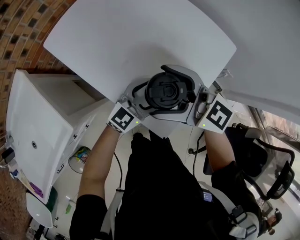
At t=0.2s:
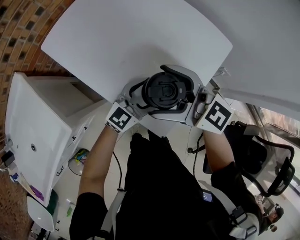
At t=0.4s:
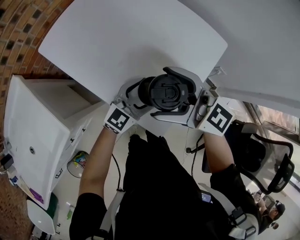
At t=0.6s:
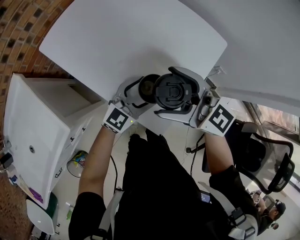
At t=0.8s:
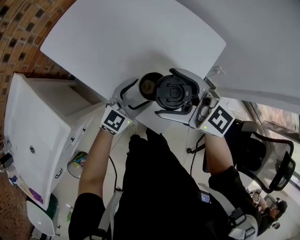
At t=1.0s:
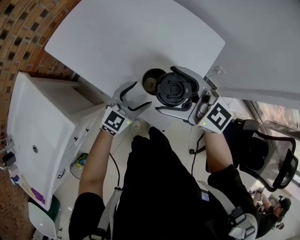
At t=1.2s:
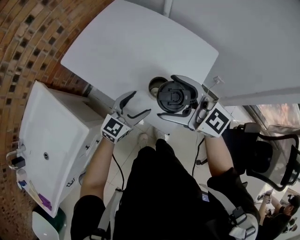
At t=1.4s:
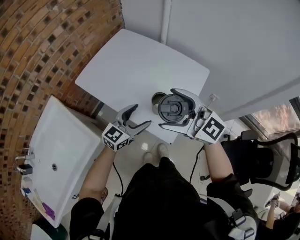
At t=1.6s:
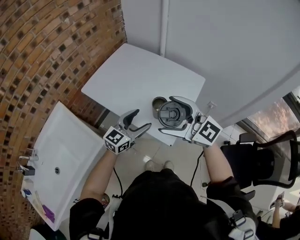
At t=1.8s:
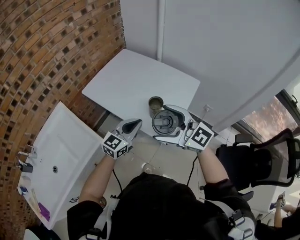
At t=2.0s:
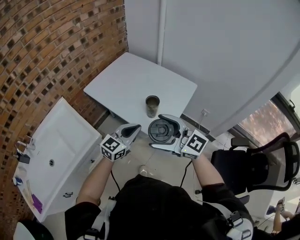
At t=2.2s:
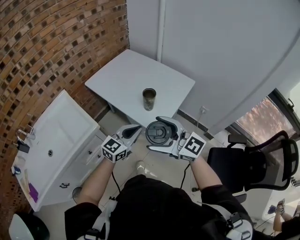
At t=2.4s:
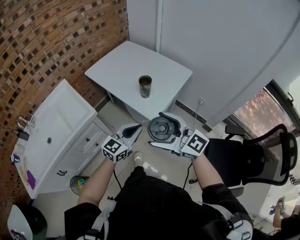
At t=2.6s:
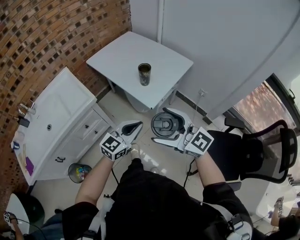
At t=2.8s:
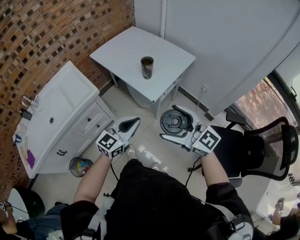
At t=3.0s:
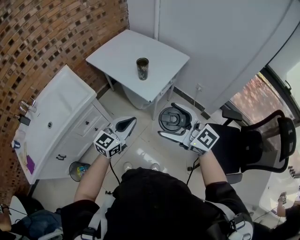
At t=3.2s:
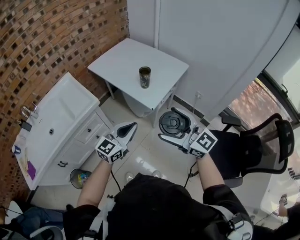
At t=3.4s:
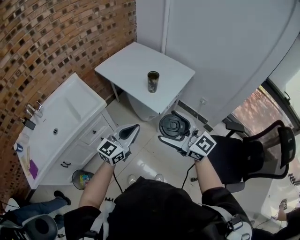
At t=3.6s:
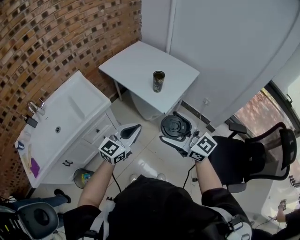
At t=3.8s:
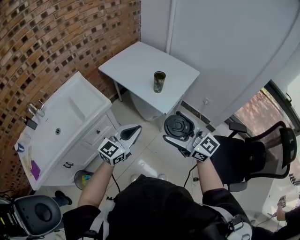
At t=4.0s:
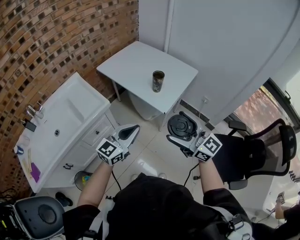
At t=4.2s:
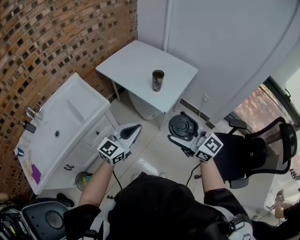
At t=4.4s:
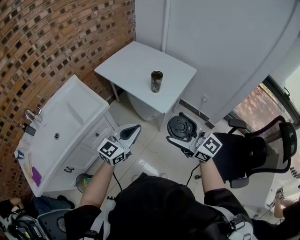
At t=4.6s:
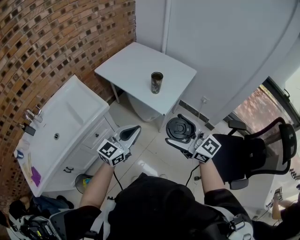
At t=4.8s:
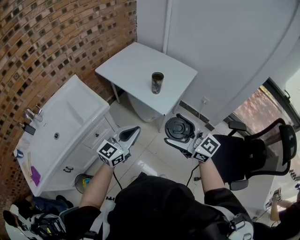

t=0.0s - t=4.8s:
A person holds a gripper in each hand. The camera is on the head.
t=0.0s - t=1.6s: The left gripper is displaced upward, to the left and backward by some 20 cm, while the right gripper heads upward and backward, covering some 20 cm, and rotates approximately 20 degrees.
t=1.6s - t=3.2s: The two grippers go roughly 30 cm backward. The left gripper closes its fingers.
t=3.2s - t=4.8s: Both grippers move to the left, approximately 5 cm.

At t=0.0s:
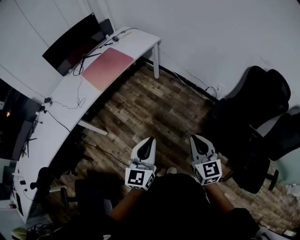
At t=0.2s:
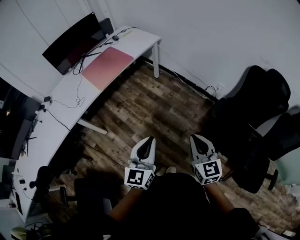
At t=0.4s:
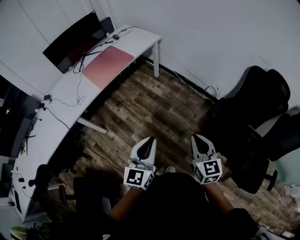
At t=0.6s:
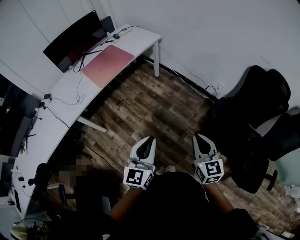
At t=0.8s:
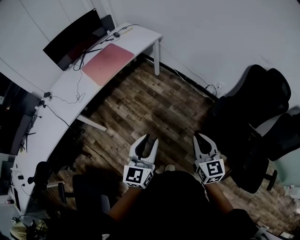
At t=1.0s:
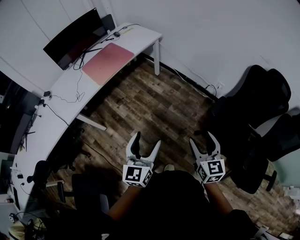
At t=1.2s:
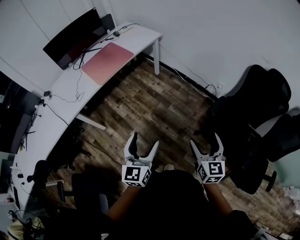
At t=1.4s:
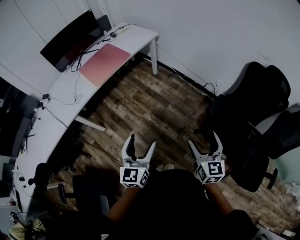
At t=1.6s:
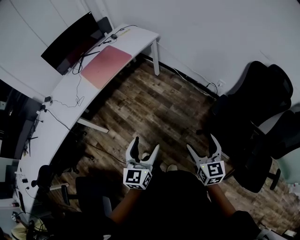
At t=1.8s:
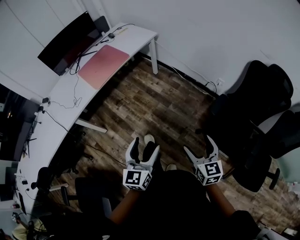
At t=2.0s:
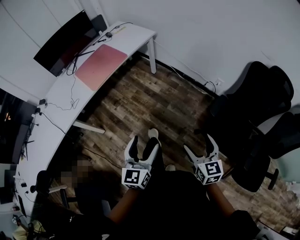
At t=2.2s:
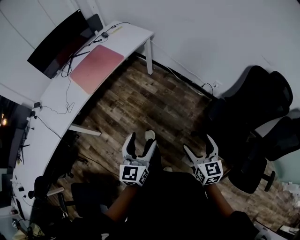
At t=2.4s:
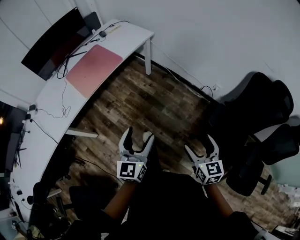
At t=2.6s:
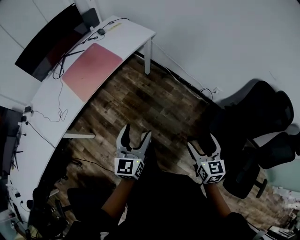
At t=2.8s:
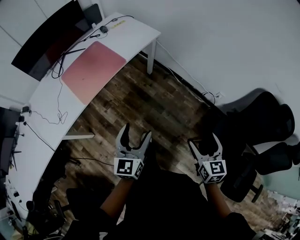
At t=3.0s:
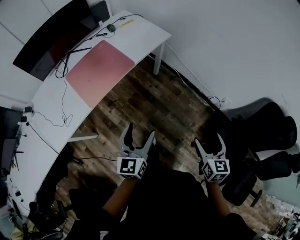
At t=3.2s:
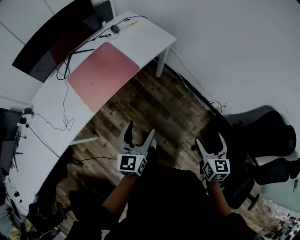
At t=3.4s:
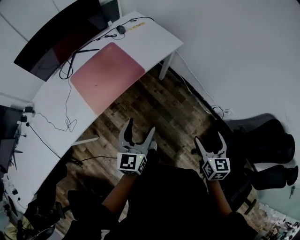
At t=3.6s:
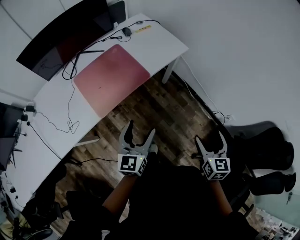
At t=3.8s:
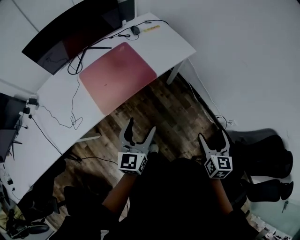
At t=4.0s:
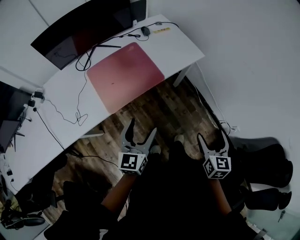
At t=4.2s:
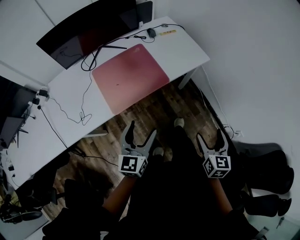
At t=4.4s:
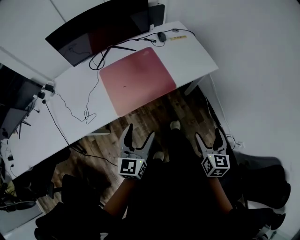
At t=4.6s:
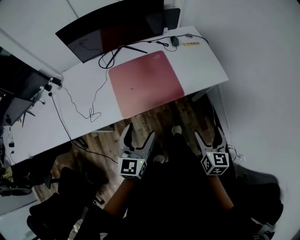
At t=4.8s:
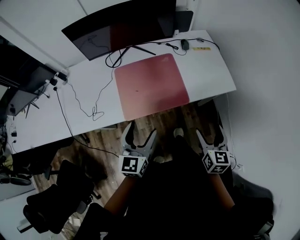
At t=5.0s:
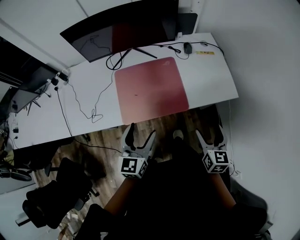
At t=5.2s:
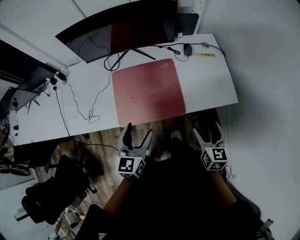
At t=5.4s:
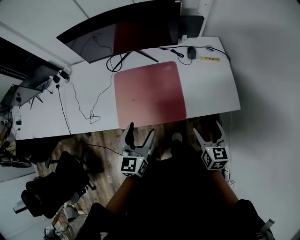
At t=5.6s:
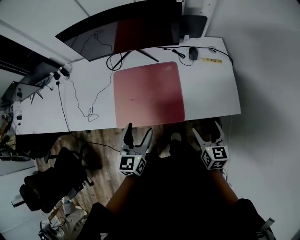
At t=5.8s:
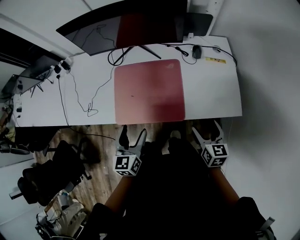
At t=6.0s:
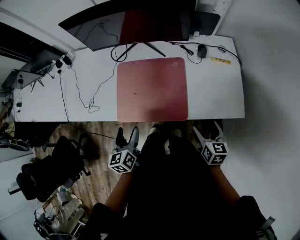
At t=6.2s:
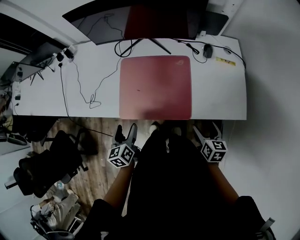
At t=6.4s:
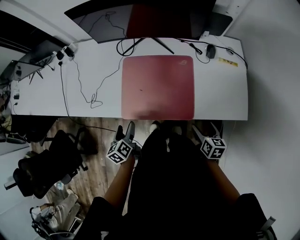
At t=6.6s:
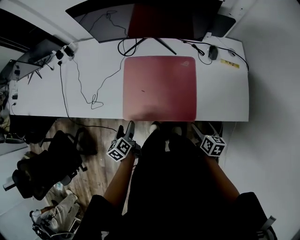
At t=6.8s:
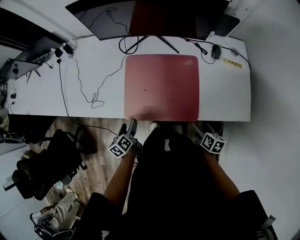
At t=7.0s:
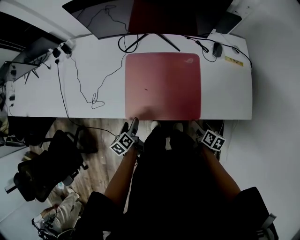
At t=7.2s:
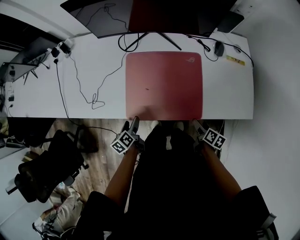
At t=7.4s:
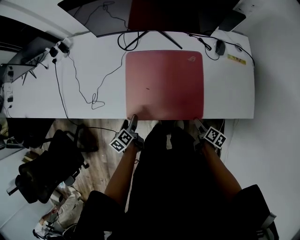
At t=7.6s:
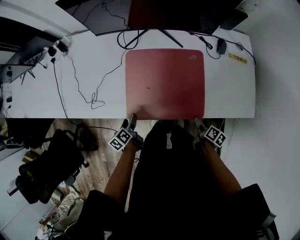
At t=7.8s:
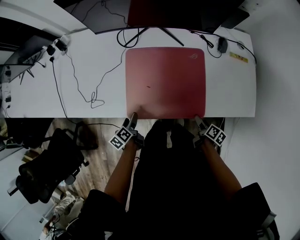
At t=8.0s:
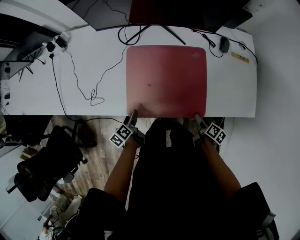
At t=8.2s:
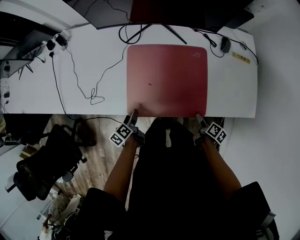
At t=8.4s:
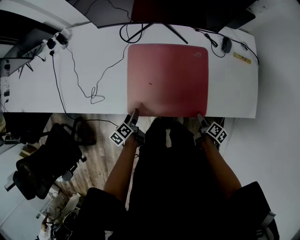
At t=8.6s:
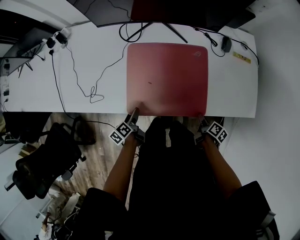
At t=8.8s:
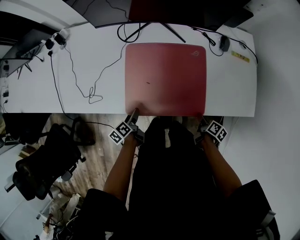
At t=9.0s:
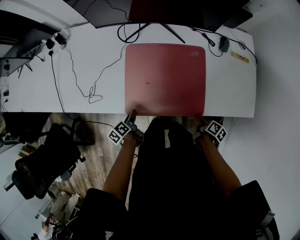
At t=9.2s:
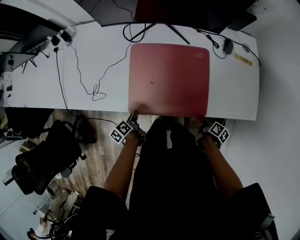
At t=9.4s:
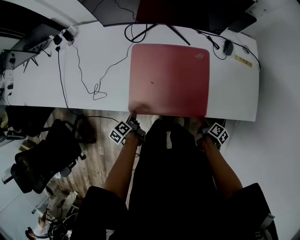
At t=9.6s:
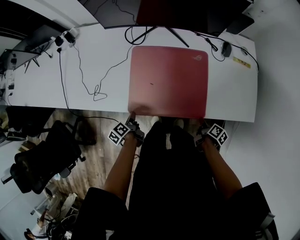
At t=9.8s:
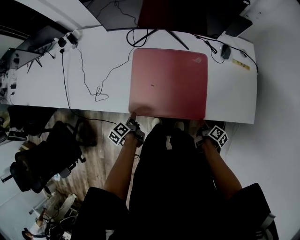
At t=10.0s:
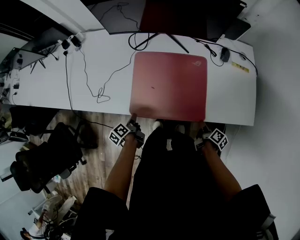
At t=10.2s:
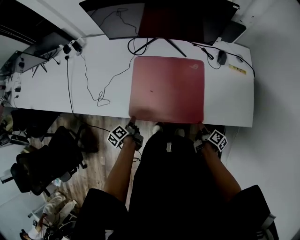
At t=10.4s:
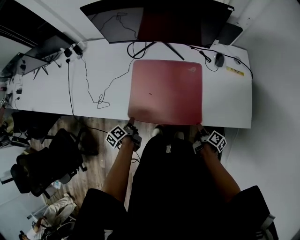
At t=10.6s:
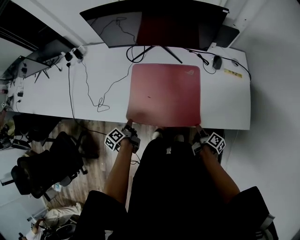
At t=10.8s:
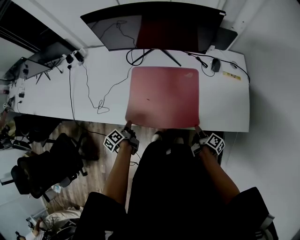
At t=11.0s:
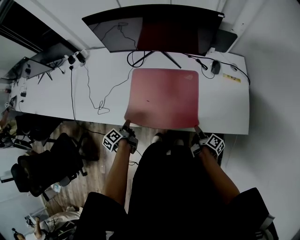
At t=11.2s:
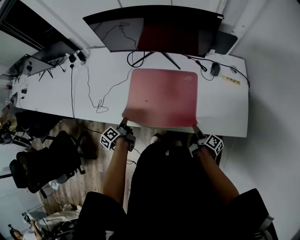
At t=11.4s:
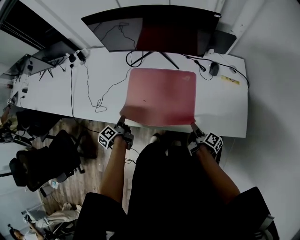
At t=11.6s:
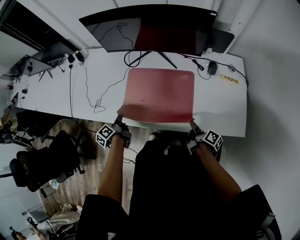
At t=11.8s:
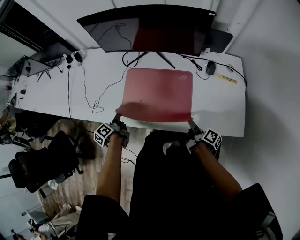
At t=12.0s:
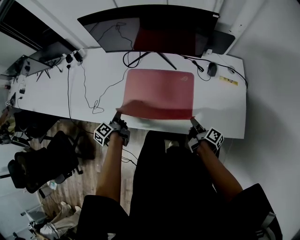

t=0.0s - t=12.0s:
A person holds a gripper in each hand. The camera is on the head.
t=0.0s - t=1.6s: The left gripper opens. Meanwhile the right gripper shifts about 5 cm to the right, and opens its fingers.
t=1.6s - t=3.0s: Both grippers travel together forward, about 35 cm.
t=3.0s - t=4.4s: The right gripper is displaced forward and to the left by about 30 cm, while the left gripper shifts approximately 20 cm to the left and forward, and changes its angle by some 20 degrees.
t=4.4s - t=6.0s: The right gripper changes place by approximately 35 cm, and turns by about 30 degrees. The left gripper changes place by roughly 20 cm, and changes its angle by some 50 degrees.
t=6.0s - t=7.6s: The right gripper travels downward by about 20 cm, and rolls clockwise, seen from behind, by roughly 40 degrees, while the left gripper shifts some 25 cm downward and to the left, and swivels some 30 degrees.
t=7.6s - t=9.0s: The left gripper closes, while the right gripper closes its fingers.
t=9.0s - t=10.4s: Both grippers travel together upward, some 5 cm. The left gripper closes up.
t=10.4s - t=12.0s: The left gripper is displaced upward and forward by some 10 cm. The right gripper moves forward and upward, roughly 10 cm.

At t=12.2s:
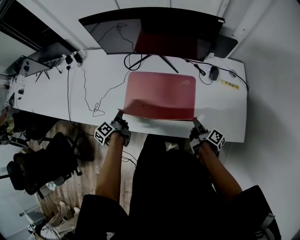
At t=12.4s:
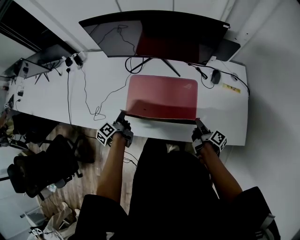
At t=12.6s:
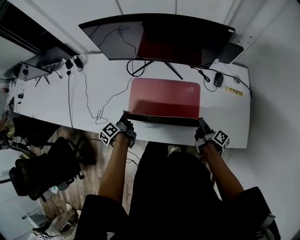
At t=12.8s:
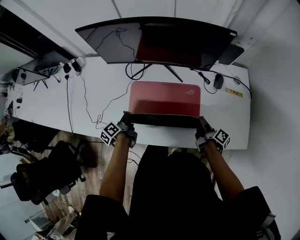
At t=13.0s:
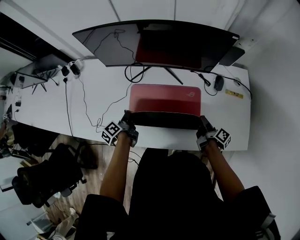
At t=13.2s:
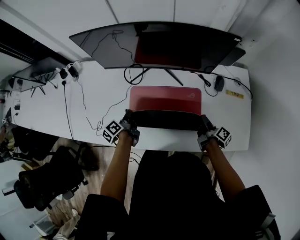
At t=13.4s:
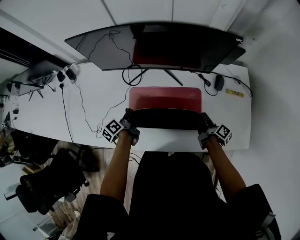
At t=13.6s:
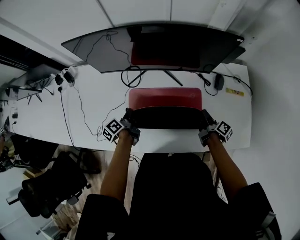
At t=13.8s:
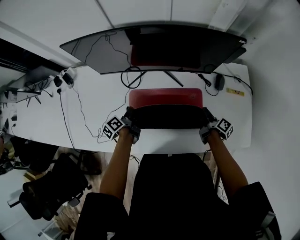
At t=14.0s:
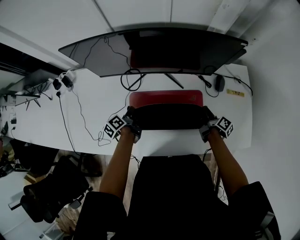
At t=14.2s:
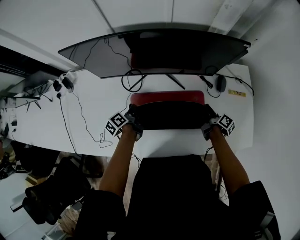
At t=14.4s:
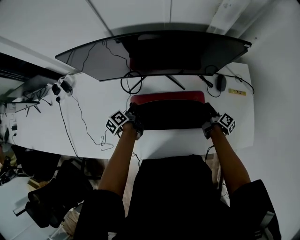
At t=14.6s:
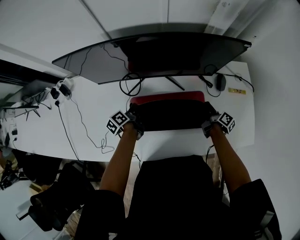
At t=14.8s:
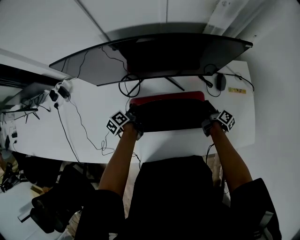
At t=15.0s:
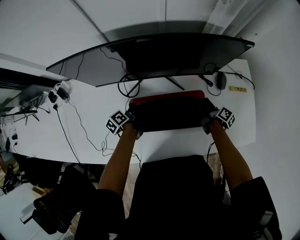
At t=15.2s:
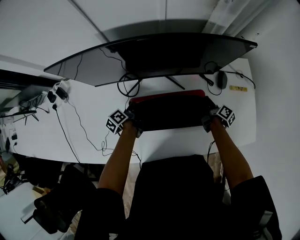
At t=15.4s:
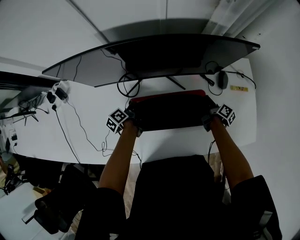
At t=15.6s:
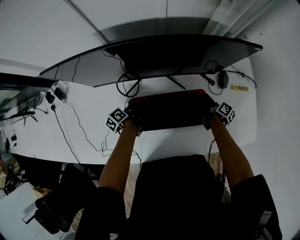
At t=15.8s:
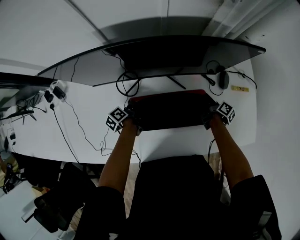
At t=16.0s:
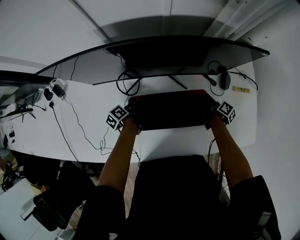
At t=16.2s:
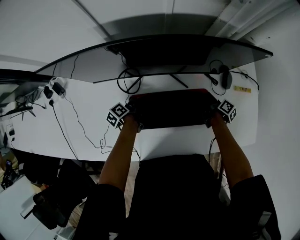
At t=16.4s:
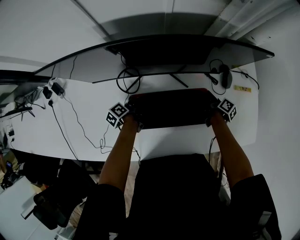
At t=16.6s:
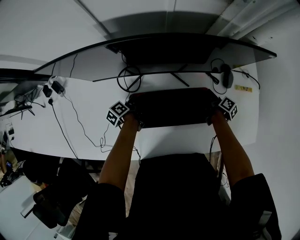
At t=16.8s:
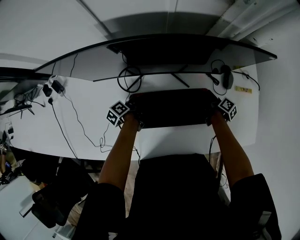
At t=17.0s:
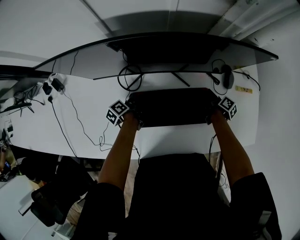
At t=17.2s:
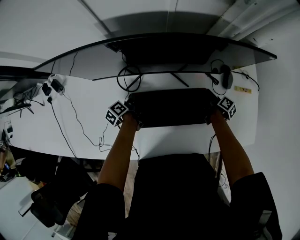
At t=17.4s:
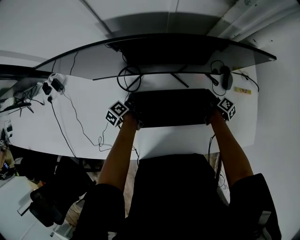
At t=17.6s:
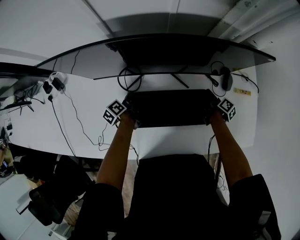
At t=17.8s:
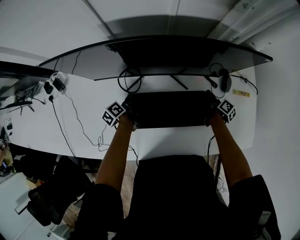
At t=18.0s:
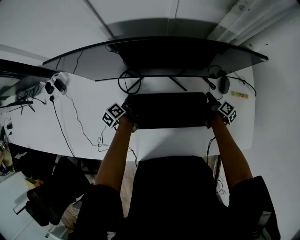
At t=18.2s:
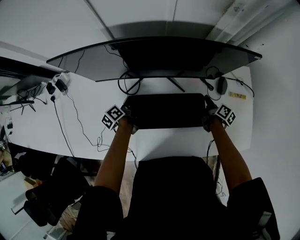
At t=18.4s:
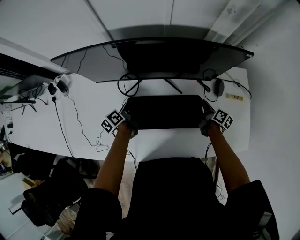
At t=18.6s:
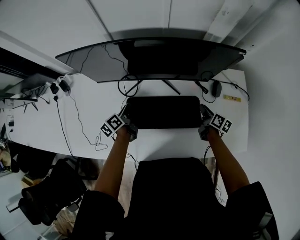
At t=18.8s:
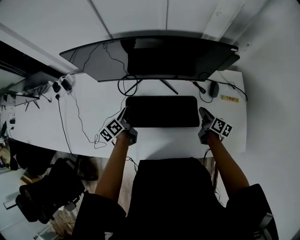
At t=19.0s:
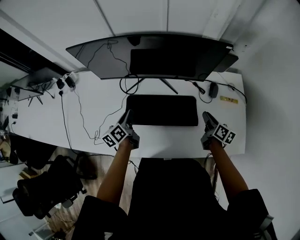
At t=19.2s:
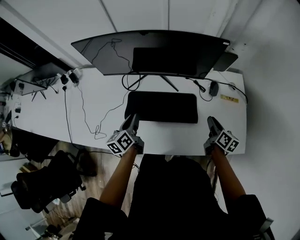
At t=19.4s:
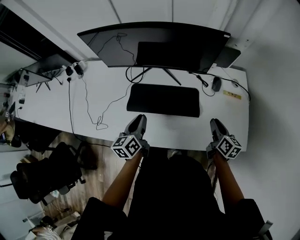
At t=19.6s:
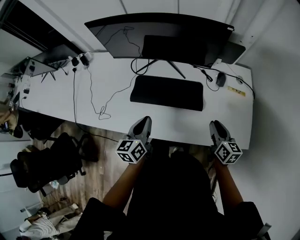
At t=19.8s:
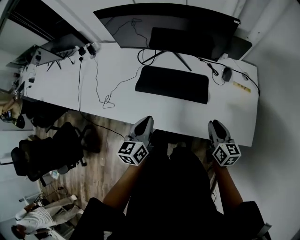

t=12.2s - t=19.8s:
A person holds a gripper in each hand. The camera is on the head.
t=12.2s - t=13.8s: The two grippers go about 15 cm forward.
t=13.8s - t=15.2s: Both grippers move forward, some 10 cm.
t=15.2s - t=16.8s: The grippers stay close to where they were, moving slightly.
t=16.8s - t=18.2s: The left gripper travels upward by about 5 cm.
t=18.2s - t=19.8s: The left gripper travels backward, upward and to the right by about 40 cm, and rotates around the line of its fingers by approximately 40 degrees, clockwise from behind, while the right gripper travels backward and upward by approximately 35 cm, and twists roughly 40 degrees counterclockwise, seen from behind.
